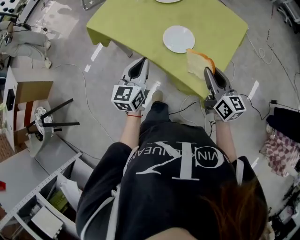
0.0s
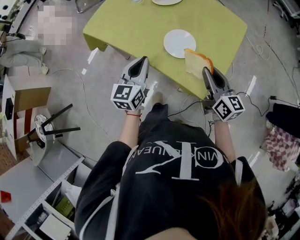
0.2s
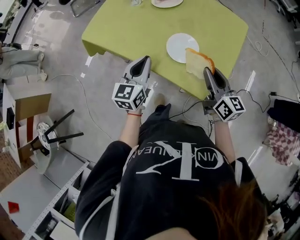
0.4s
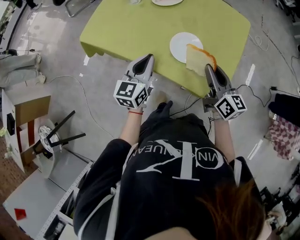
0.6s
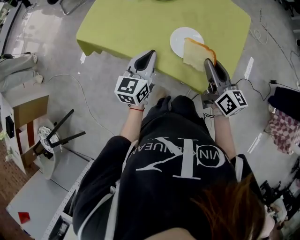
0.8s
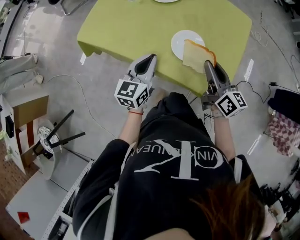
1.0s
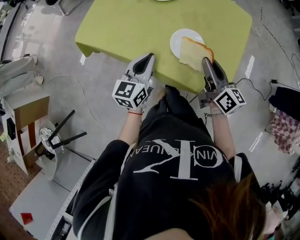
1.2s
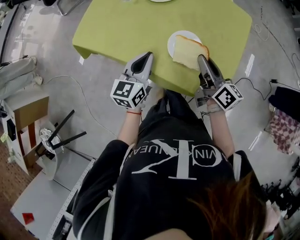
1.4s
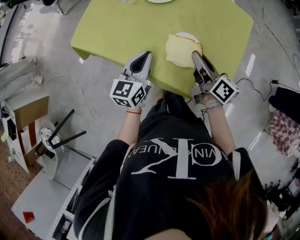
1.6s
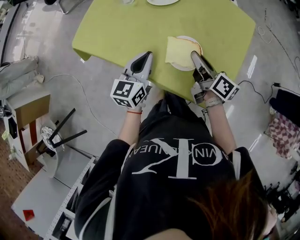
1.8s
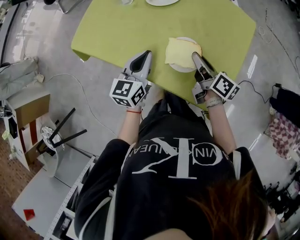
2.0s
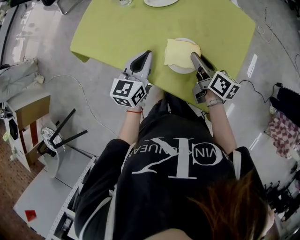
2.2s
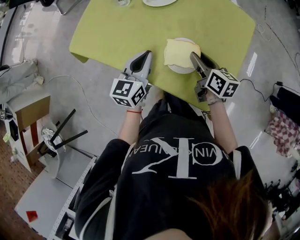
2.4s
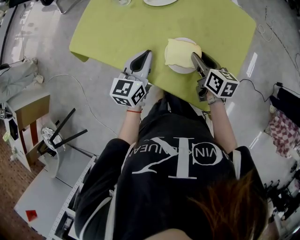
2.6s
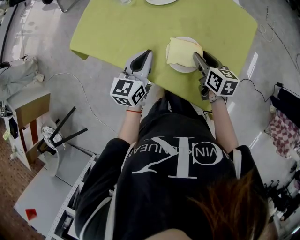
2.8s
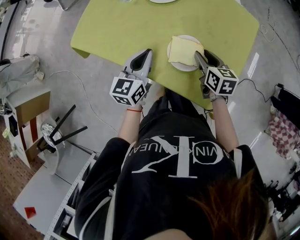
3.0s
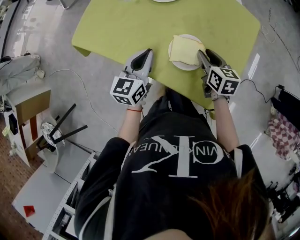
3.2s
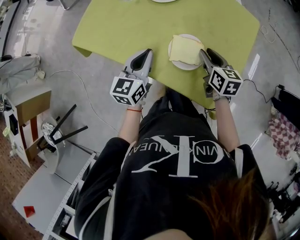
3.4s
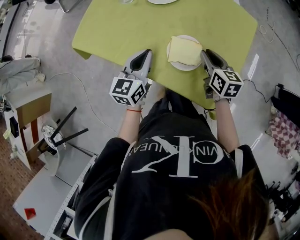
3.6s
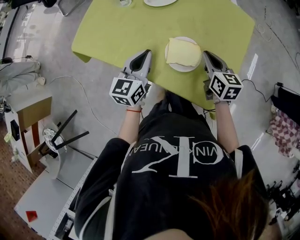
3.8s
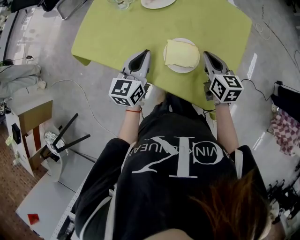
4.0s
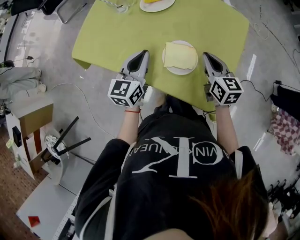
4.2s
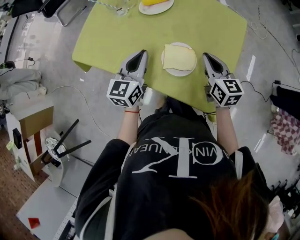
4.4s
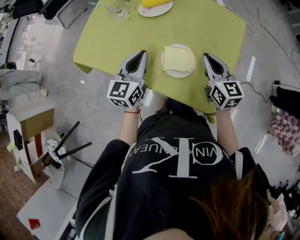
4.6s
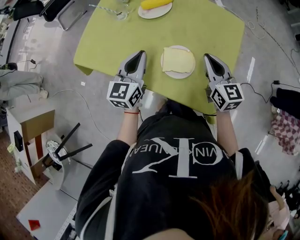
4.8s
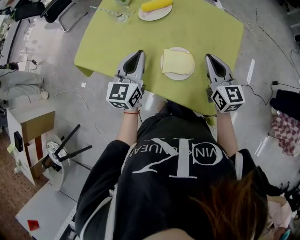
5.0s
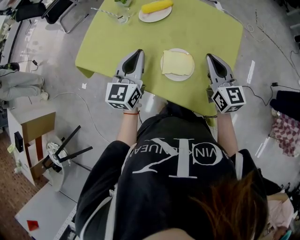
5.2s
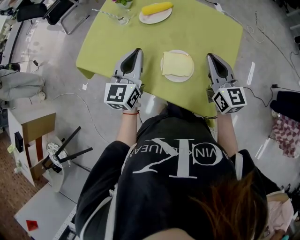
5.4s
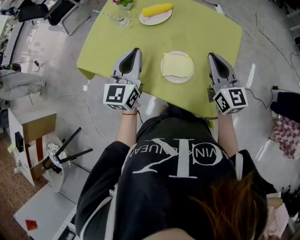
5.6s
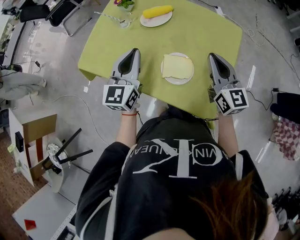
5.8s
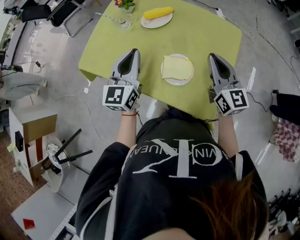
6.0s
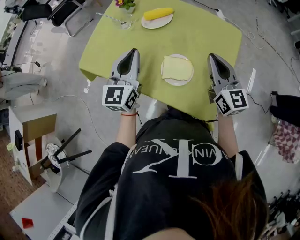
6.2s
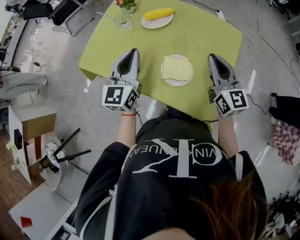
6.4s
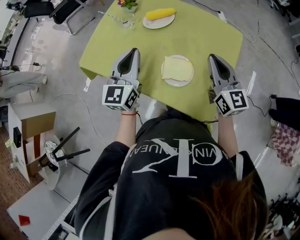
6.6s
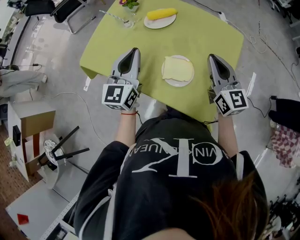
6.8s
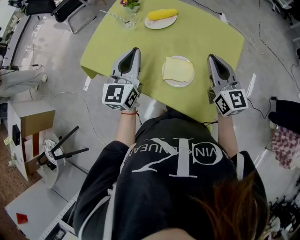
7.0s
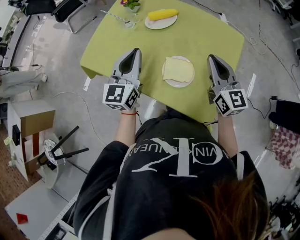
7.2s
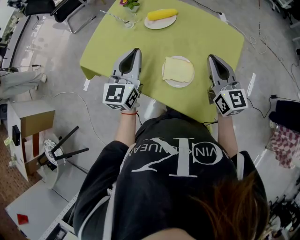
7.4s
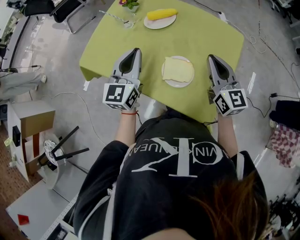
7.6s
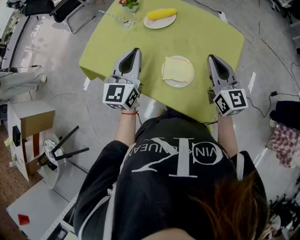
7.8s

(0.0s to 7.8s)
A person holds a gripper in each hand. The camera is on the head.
0.0s - 1.6s: The left gripper is displaced forward by roughly 15 cm, while the right gripper heads forward and to the left, covering roughly 15 cm, and turns by roughly 30 degrees.
1.6s - 3.2s: The right gripper goes approximately 5 cm downward, and changes its angle by approximately 40 degrees.
3.2s - 4.6s: The left gripper shifts by approximately 5 cm. Meanwhile the right gripper heads upward, covering roughly 10 cm, rotates some 20 degrees, and closes up.
4.6s - 6.2s: The two grippers go roughly 10 cm upward.
6.2s - 7.8s: Neither gripper changes place.

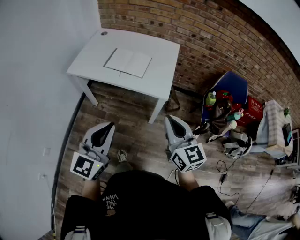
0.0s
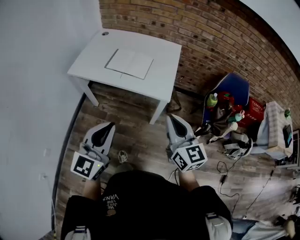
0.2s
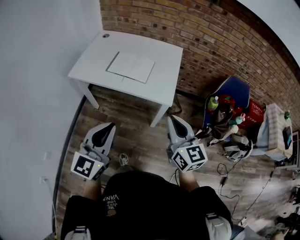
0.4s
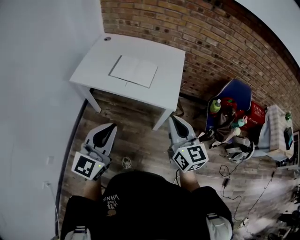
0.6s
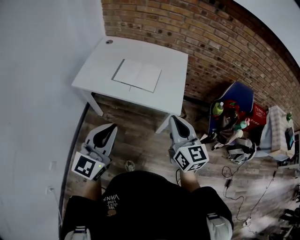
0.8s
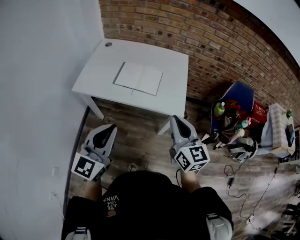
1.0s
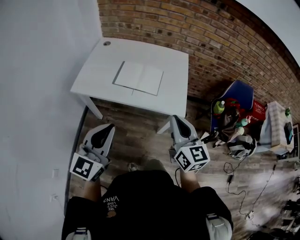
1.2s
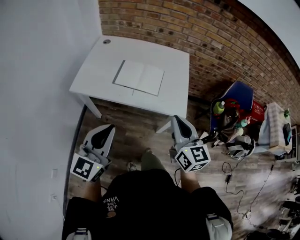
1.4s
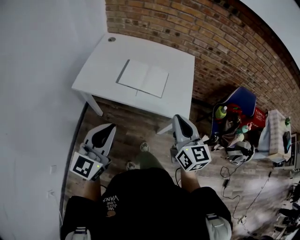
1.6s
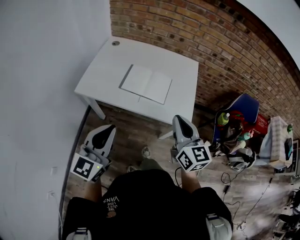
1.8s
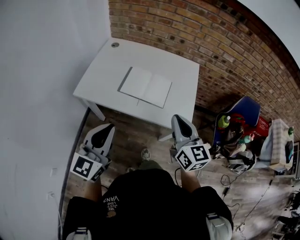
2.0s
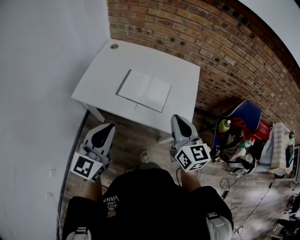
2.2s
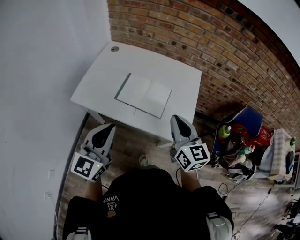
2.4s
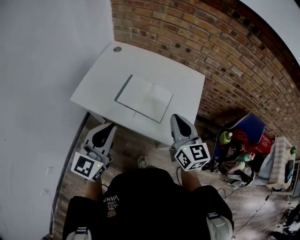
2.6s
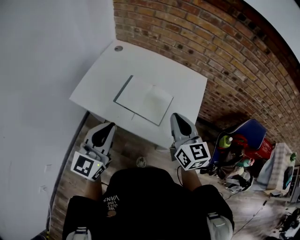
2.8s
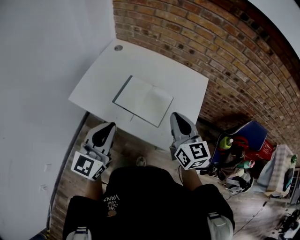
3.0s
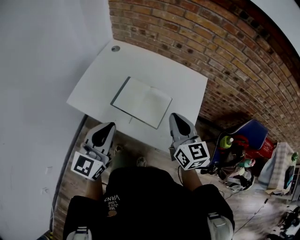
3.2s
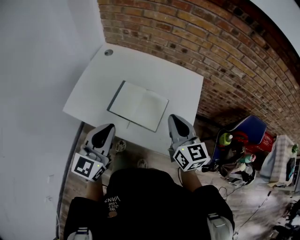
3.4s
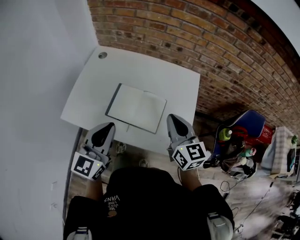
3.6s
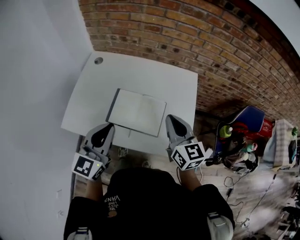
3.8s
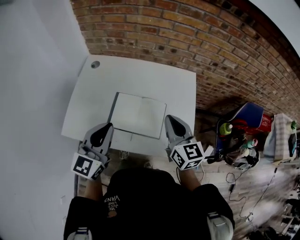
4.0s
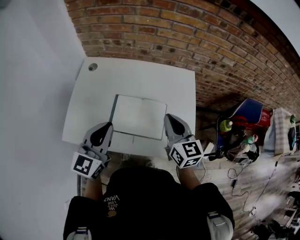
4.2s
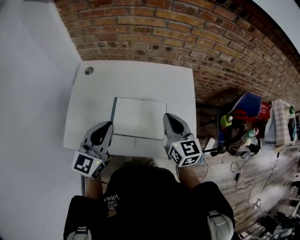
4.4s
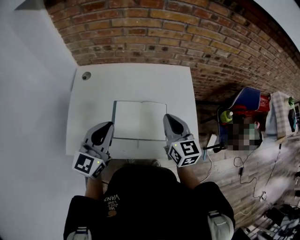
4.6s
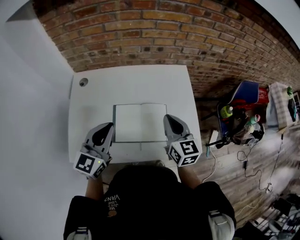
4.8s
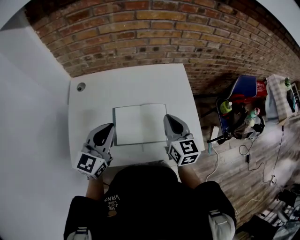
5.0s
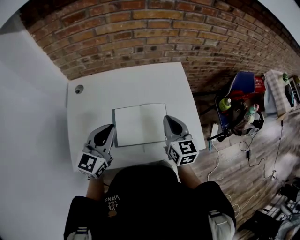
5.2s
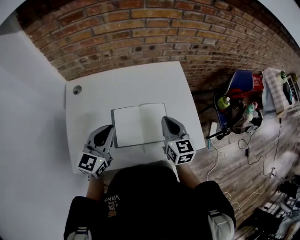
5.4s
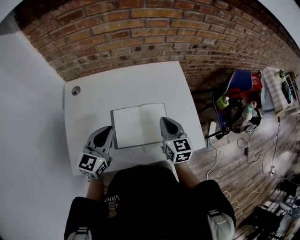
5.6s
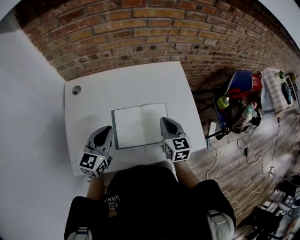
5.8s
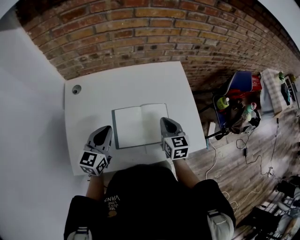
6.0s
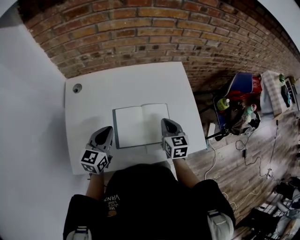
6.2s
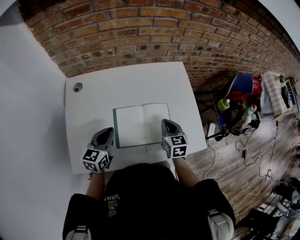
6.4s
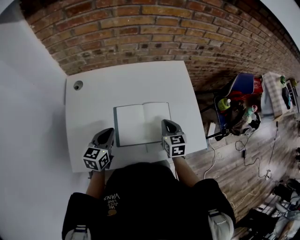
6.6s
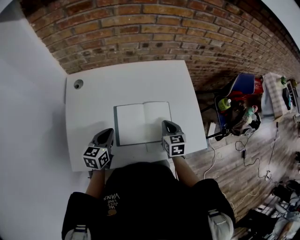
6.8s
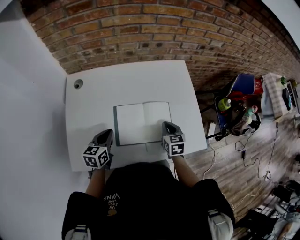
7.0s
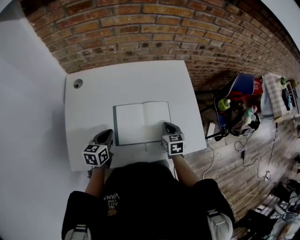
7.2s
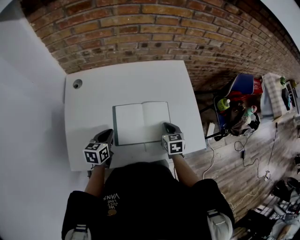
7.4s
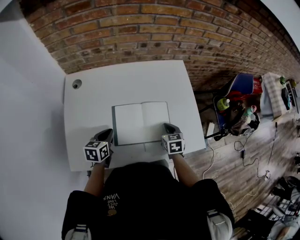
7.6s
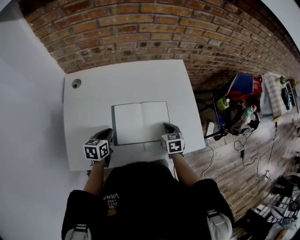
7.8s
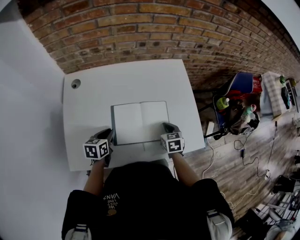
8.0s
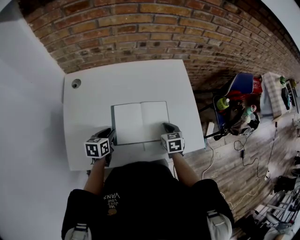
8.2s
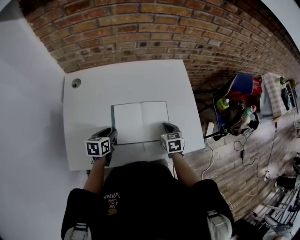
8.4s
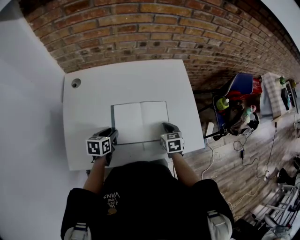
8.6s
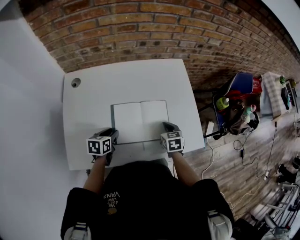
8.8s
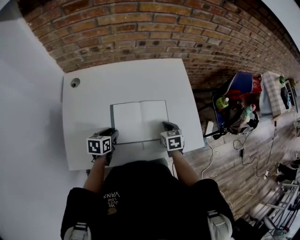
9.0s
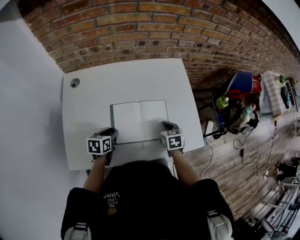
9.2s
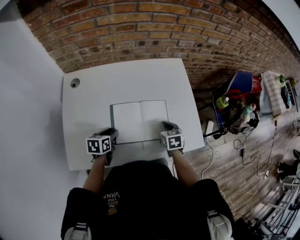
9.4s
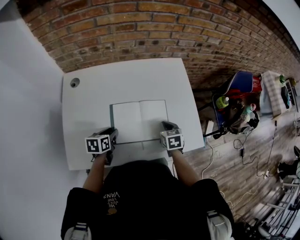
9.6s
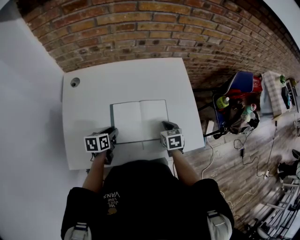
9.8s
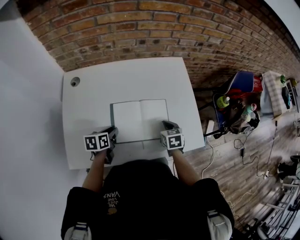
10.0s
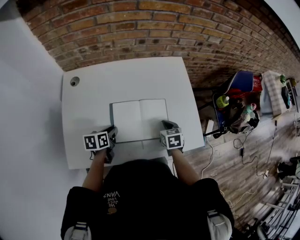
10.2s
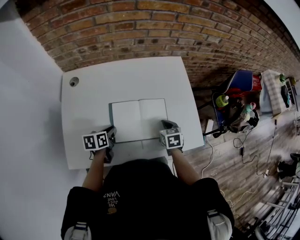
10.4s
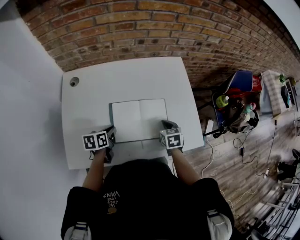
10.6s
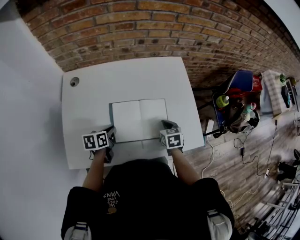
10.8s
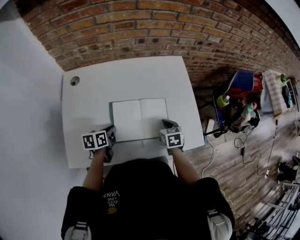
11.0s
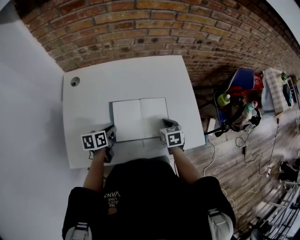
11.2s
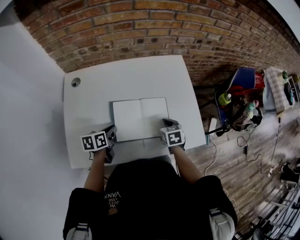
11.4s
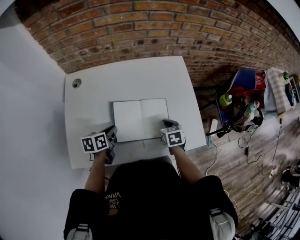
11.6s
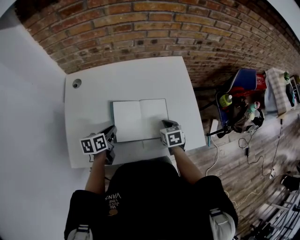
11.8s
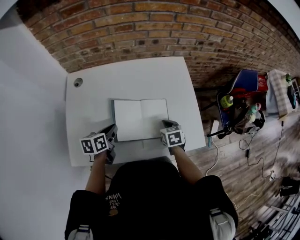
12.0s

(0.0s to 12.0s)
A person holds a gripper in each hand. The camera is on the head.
0.0s - 1.6s: The right gripper shifts about 20 cm forward and to the left; the left gripper travels to the left and forward by some 25 cm.
1.6s - 3.0s: The two grippers go roughly 20 cm forward.
3.0s - 4.4s: The right gripper goes approximately 10 cm forward, and rotates about 20 degrees. Meanwhile the left gripper travels forward by approximately 20 cm.
4.4s - 6.0s: The right gripper shifts about 10 cm downward, and turns by approximately 20 degrees; the left gripper goes approximately 15 cm downward, forward and to the left.
6.0s - 7.6s: The two grippers go about 10 cm downward. The left gripper rotates approximately 30 degrees.
7.6s - 9.0s: The left gripper opens its fingers.
9.0s - 10.4s: The left gripper closes up.
10.4s - 12.0s: The left gripper goes roughly 5 cm upward.

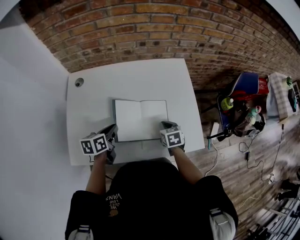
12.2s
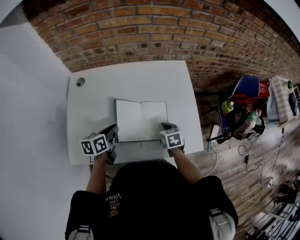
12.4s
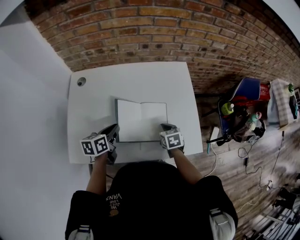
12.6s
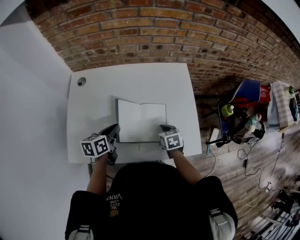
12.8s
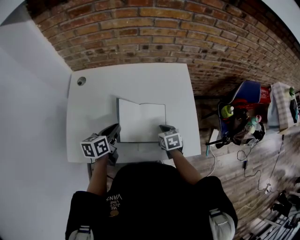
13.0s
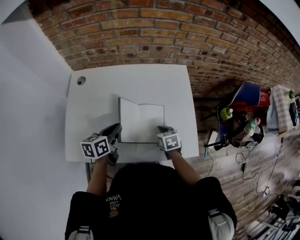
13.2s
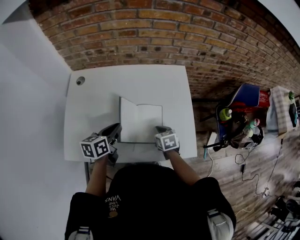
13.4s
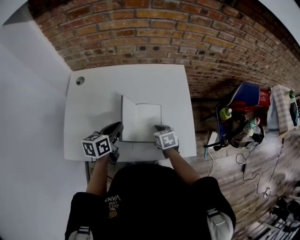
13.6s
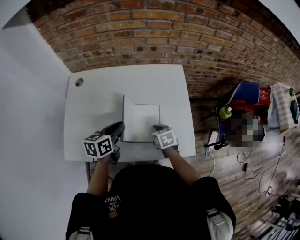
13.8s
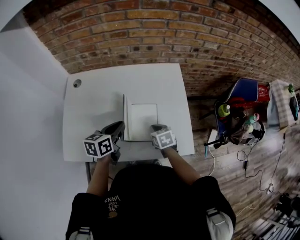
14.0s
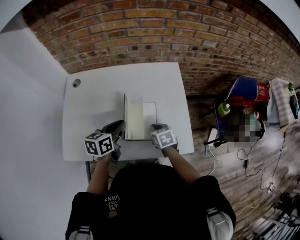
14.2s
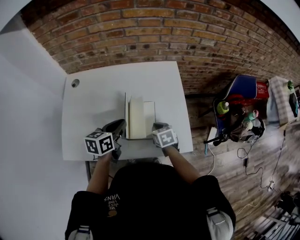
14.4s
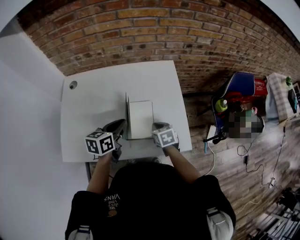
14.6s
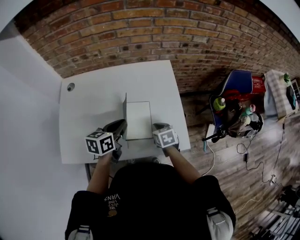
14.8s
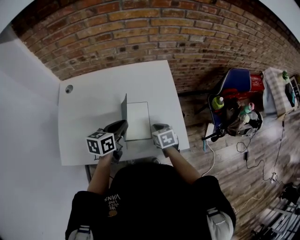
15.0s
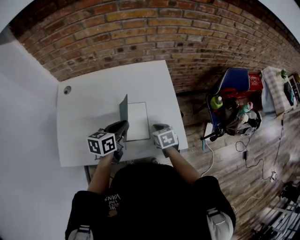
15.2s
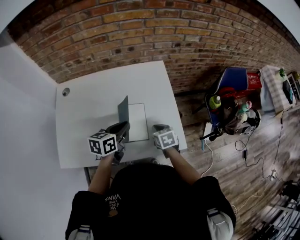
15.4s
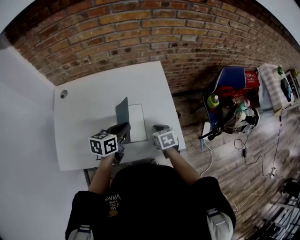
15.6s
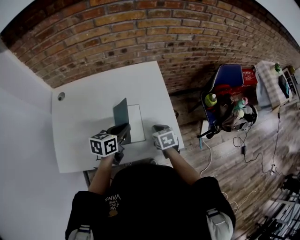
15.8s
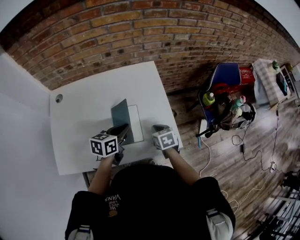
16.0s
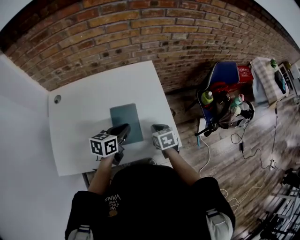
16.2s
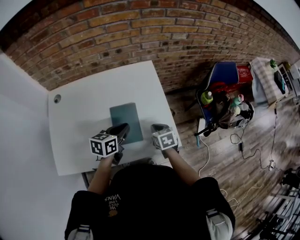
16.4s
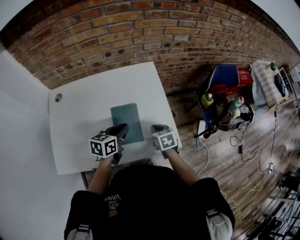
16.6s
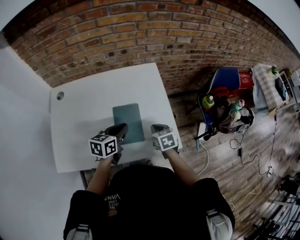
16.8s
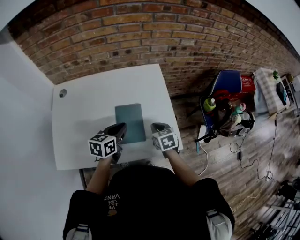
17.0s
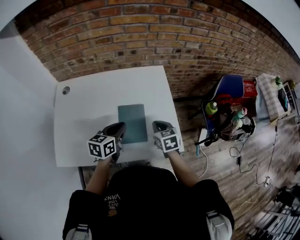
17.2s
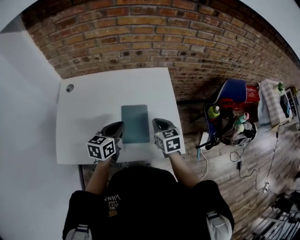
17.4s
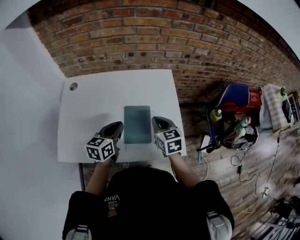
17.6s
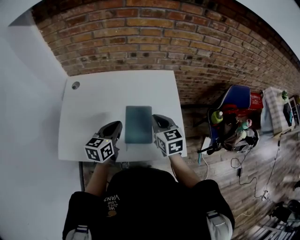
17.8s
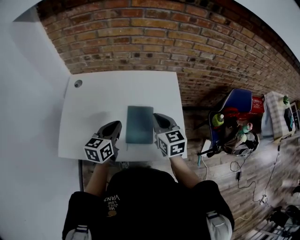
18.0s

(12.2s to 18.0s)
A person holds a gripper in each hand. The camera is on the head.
12.2s - 13.6s: The left gripper shifts some 10 cm to the right and upward.
13.6s - 15.0s: The left gripper travels to the right by roughly 10 cm, while the right gripper shifts roughly 5 cm to the right.
15.0s - 16.6s: The left gripper is displaced to the right by about 5 cm. The right gripper changes place by approximately 5 cm.
16.6s - 18.0s: The right gripper goes approximately 20 cm upward and to the left, and rotates about 30 degrees. The left gripper heads to the left and upward, covering about 10 cm, and swivels approximately 20 degrees.
